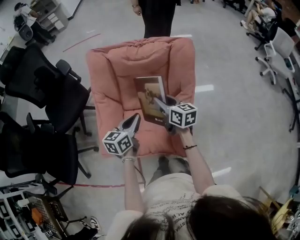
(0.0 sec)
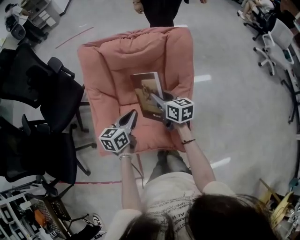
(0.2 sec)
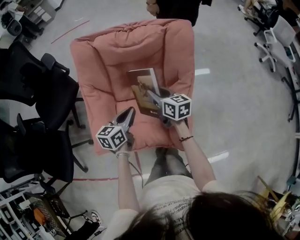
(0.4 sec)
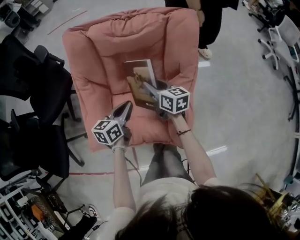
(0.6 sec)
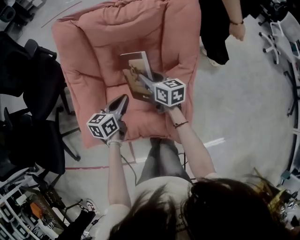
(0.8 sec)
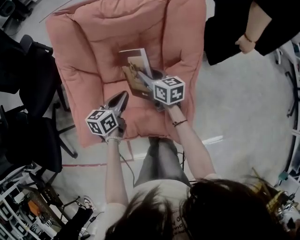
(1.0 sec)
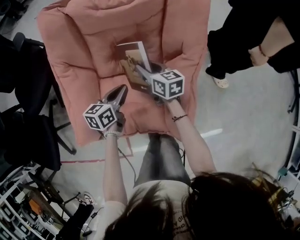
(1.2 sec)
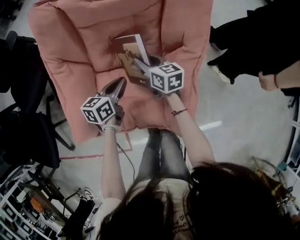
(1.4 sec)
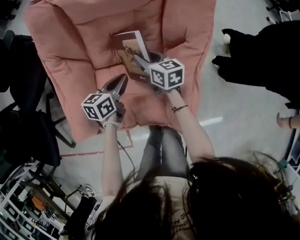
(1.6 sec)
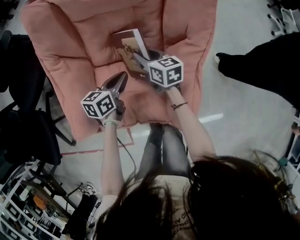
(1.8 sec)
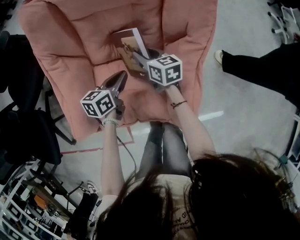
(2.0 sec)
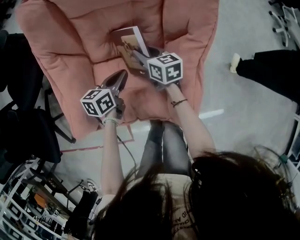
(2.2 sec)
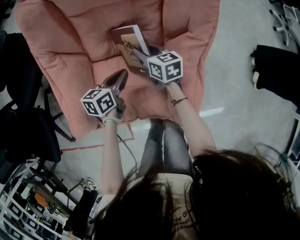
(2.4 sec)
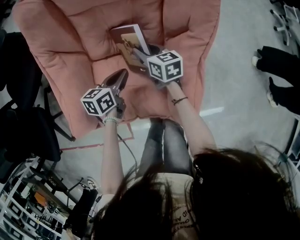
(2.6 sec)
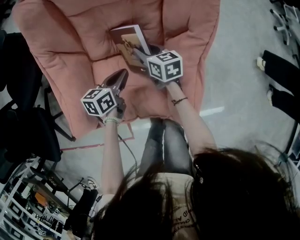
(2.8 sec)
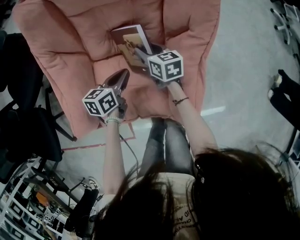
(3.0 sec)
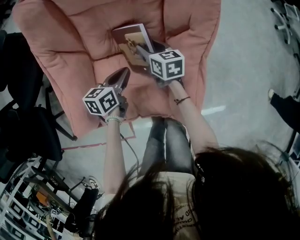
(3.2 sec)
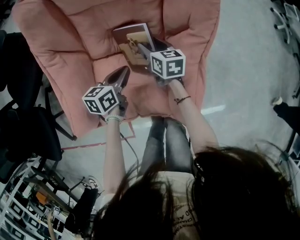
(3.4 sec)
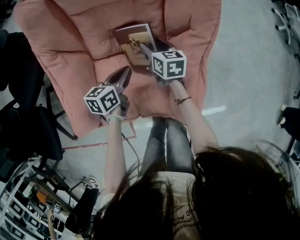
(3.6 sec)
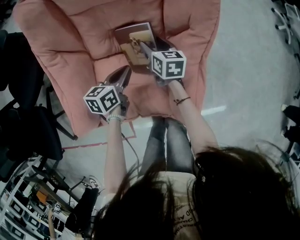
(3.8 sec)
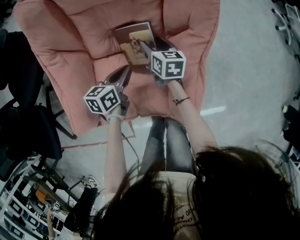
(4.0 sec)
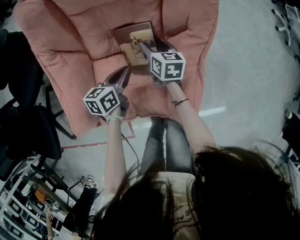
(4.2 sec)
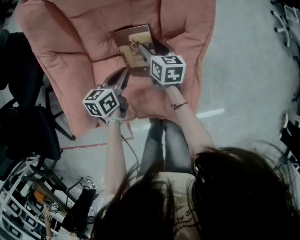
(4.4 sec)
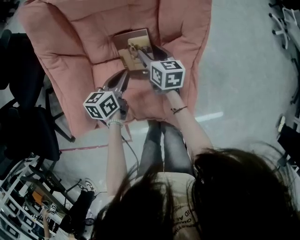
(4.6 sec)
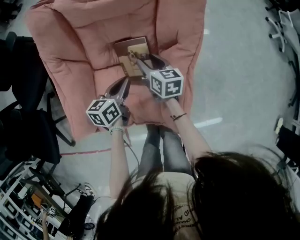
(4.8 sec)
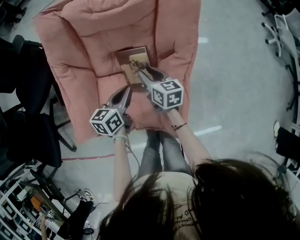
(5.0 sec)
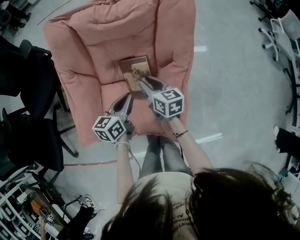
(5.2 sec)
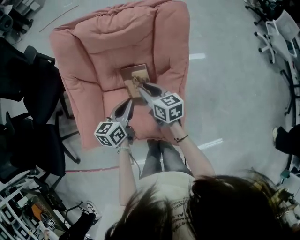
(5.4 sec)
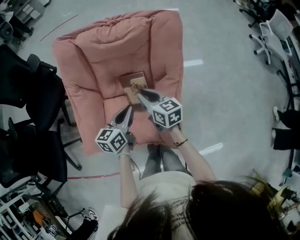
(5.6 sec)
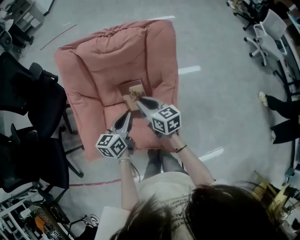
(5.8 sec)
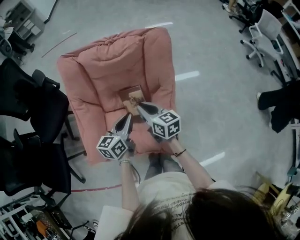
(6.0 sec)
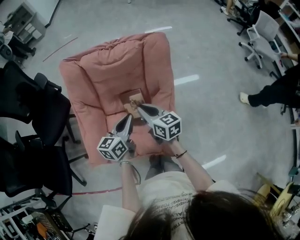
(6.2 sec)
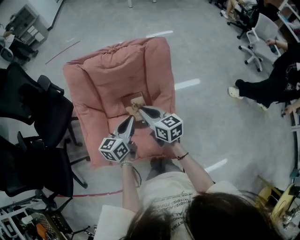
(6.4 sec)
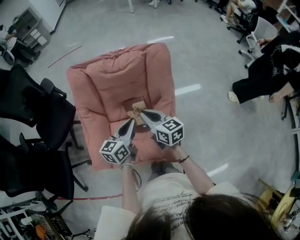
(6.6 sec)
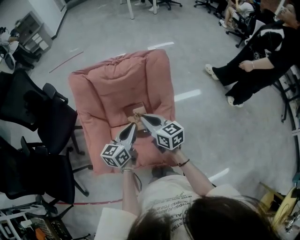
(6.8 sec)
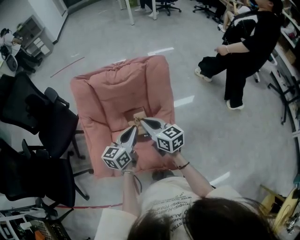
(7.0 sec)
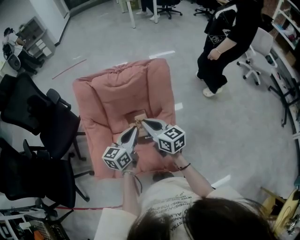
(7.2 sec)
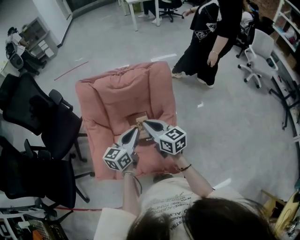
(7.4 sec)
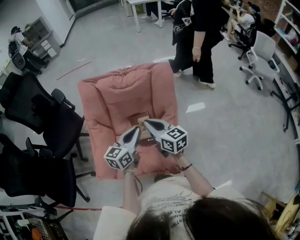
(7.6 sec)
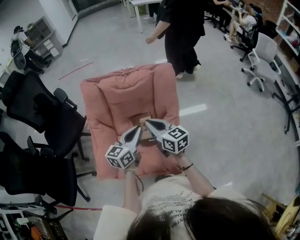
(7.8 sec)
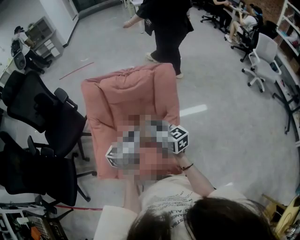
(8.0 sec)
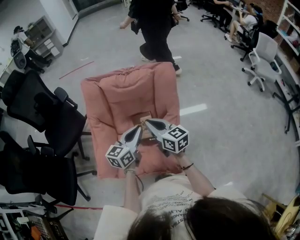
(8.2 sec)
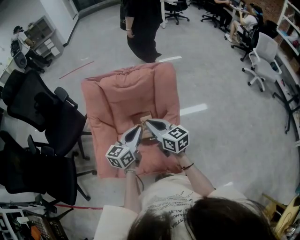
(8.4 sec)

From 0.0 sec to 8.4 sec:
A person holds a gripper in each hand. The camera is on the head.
From 0.0 sec to 1.4 sec: The grippers both shift downward by about 25 cm.
From 1.4 sec to 2.8 sec: There are only small adjustments of the grippers.
From 2.8 sec to 4.2 sec: The right gripper opens.
From 4.2 sec to 5.6 sec: Both grippers travel together upward, some 20 cm. The right gripper closes up.
From 5.6 sec to 7.0 sec: Both grippers move upward, approximately 15 cm.
From 7.0 sec to 8.4 sec: The grippers move only a little.

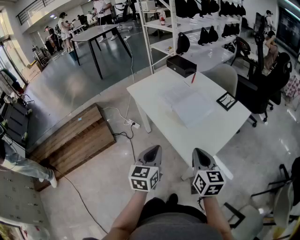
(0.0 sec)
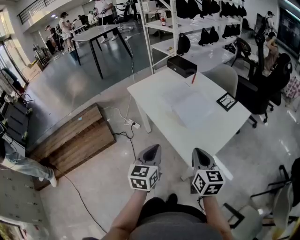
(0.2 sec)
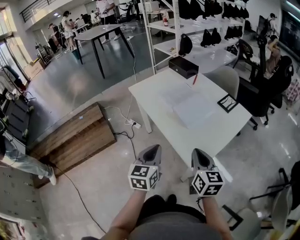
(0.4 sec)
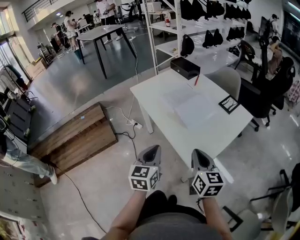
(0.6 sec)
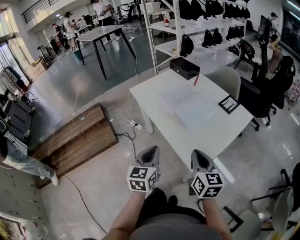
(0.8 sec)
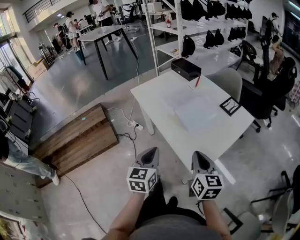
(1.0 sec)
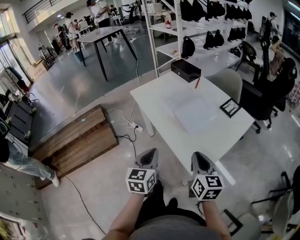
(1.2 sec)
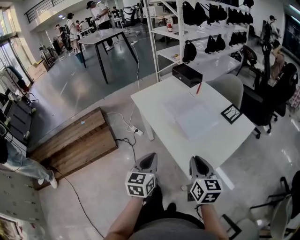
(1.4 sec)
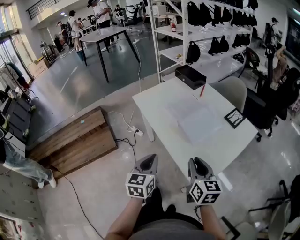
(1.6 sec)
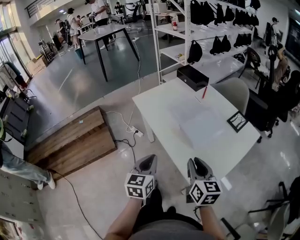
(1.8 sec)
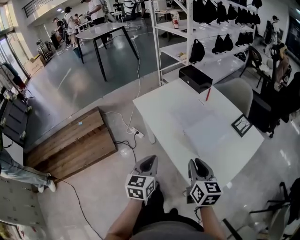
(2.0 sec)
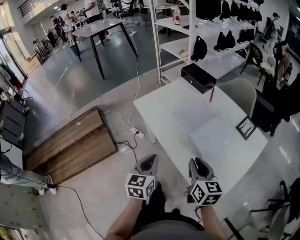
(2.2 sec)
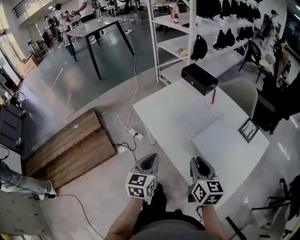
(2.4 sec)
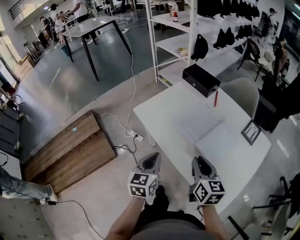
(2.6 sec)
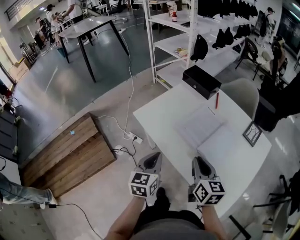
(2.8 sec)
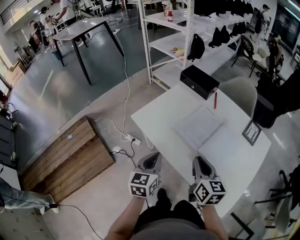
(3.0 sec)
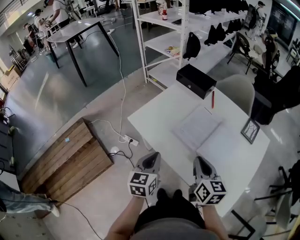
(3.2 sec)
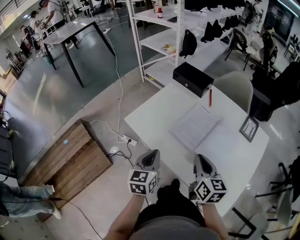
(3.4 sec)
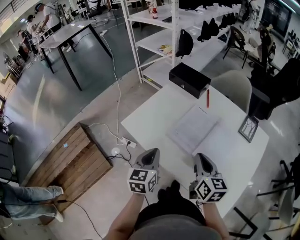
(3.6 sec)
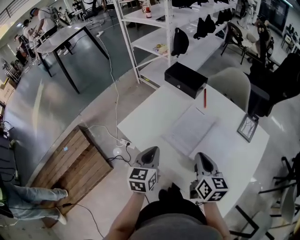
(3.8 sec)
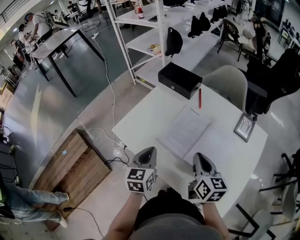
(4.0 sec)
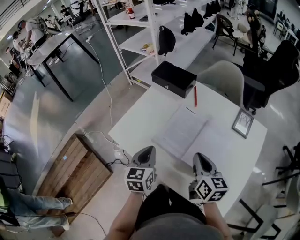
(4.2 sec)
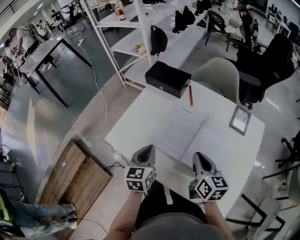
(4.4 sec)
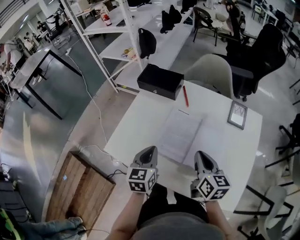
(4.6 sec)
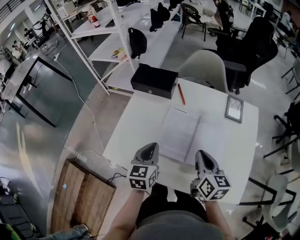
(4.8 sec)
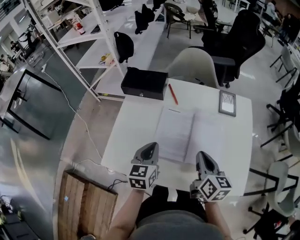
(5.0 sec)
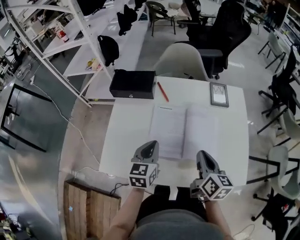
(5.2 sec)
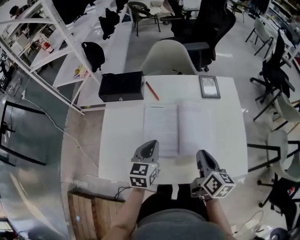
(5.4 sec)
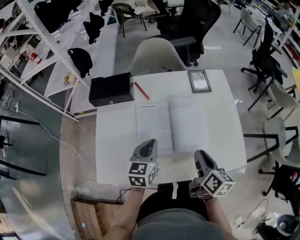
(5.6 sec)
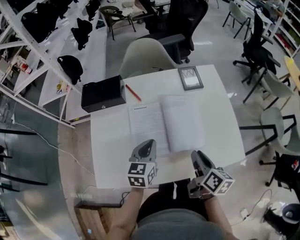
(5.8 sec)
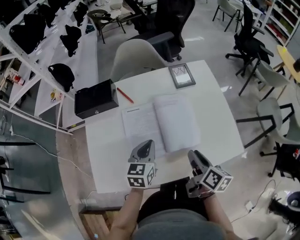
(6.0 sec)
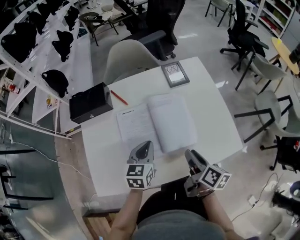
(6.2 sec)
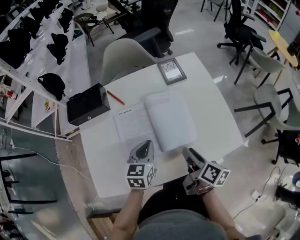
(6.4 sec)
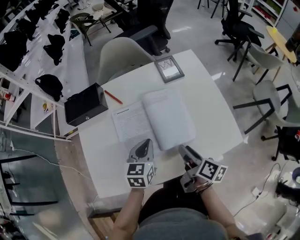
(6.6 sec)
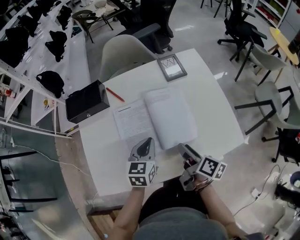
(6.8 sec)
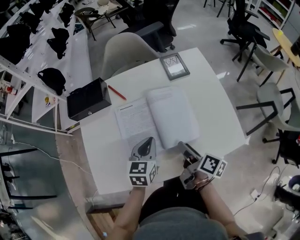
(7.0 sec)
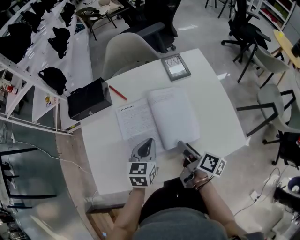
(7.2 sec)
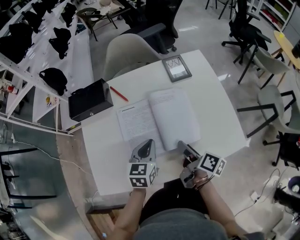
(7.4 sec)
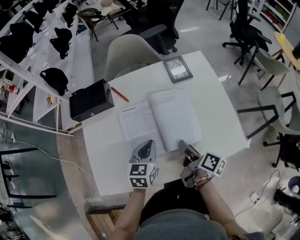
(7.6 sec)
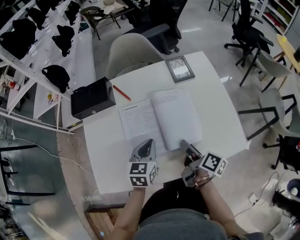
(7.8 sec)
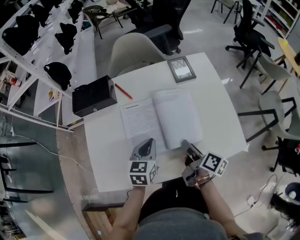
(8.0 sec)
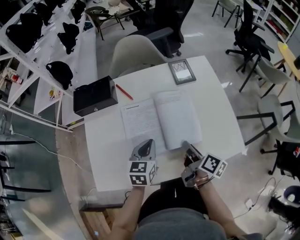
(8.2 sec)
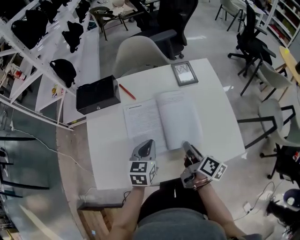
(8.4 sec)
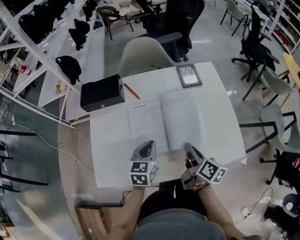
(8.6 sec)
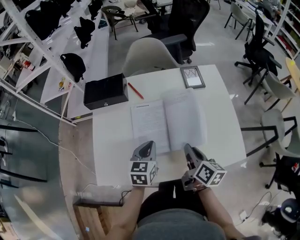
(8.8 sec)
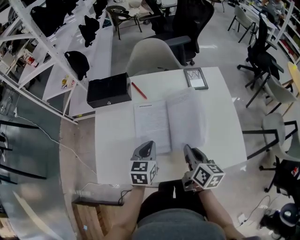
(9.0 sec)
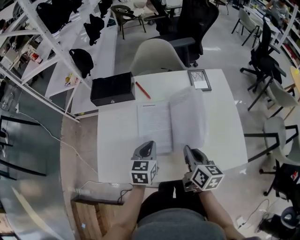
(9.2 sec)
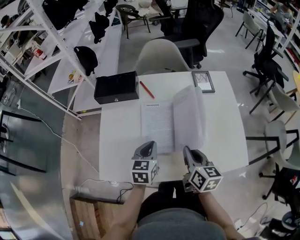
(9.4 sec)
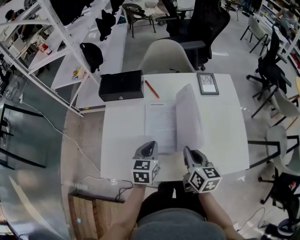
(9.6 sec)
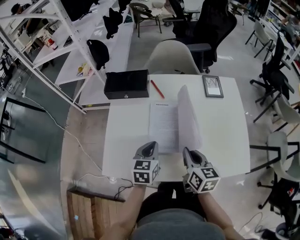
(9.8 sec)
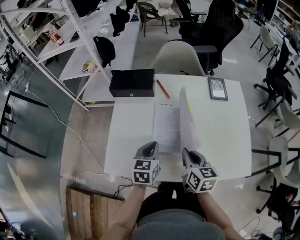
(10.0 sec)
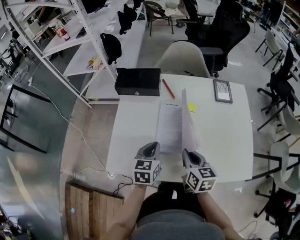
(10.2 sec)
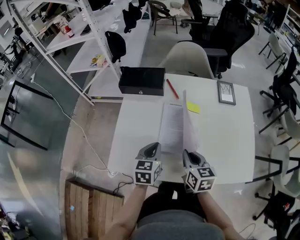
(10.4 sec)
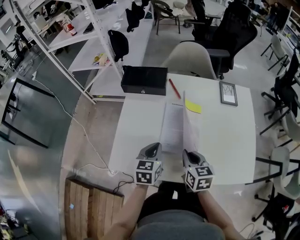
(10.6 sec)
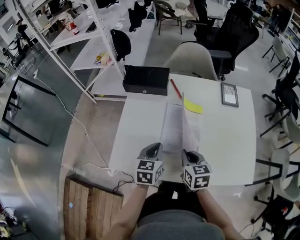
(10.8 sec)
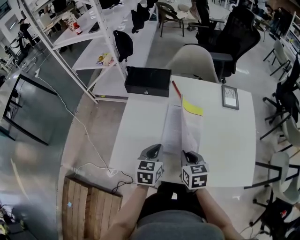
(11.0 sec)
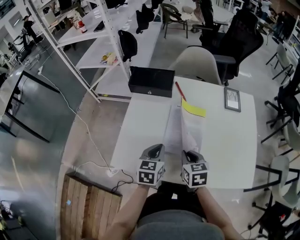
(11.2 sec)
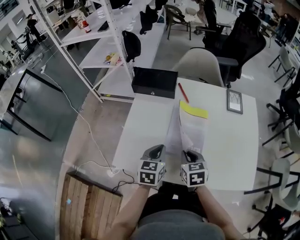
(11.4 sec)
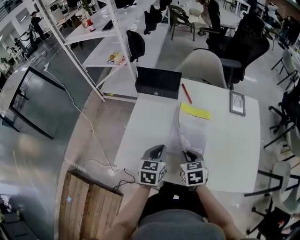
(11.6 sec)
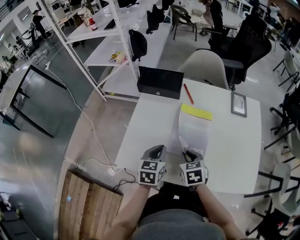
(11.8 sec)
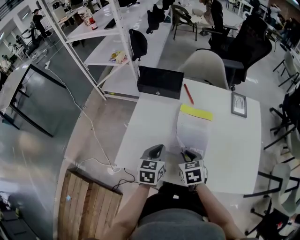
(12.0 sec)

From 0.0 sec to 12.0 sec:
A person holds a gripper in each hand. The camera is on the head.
From 0.0 sec to 1.6 sec: The right gripper goes roughly 5 cm forward. Meanwhile the left gripper shifts by some 5 cm.
From 1.6 sec to 3.0 sec: The grippers both shift forward and to the left by approximately 25 cm.
From 3.0 sec to 4.4 sec: The left gripper is displaced forward and to the right by approximately 15 cm. Meanwhile the right gripper goes approximately 10 cm to the right and forward.
From 4.4 sec to 6.0 sec: The right gripper changes place by roughly 10 cm, changes its angle by approximately 60 degrees, and opens, while the left gripper ends up approximately 10 cm from where it was, and changes its angle by about 50 degrees.
From 6.0 sec to 7.6 sec: The right gripper changes place by approximately 5 cm, rotates about 20 degrees, and opens its fingers.
From 7.6 sec to 9.0 sec: The right gripper goes roughly 5 cm upward, rotates roughly 40 degrees, and closes.
From 9.0 sec to 10.4 sec: The two grippers go some 10 cm to the left. The right gripper swivels approximately 30 degrees.
From 10.4 sec to 12.0 sec: The right gripper changes place by approximately 5 cm, and changes its angle by about 30 degrees.

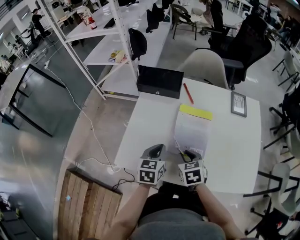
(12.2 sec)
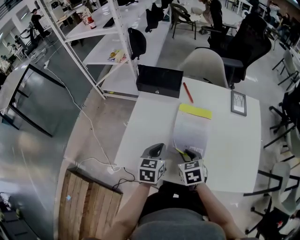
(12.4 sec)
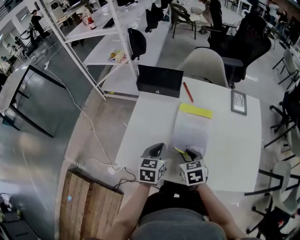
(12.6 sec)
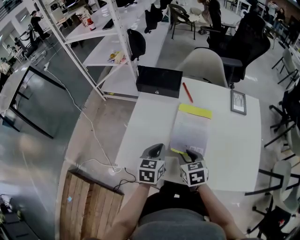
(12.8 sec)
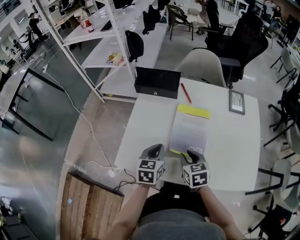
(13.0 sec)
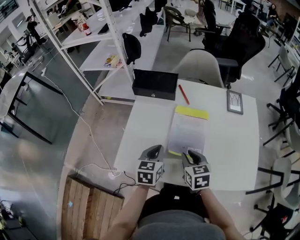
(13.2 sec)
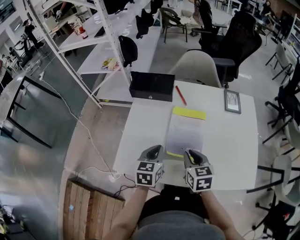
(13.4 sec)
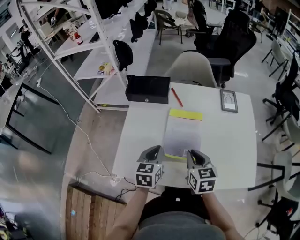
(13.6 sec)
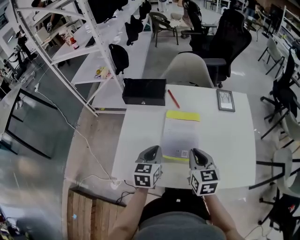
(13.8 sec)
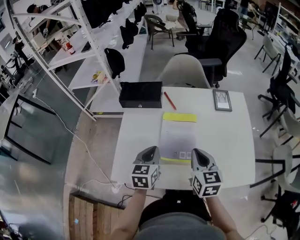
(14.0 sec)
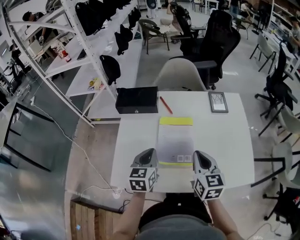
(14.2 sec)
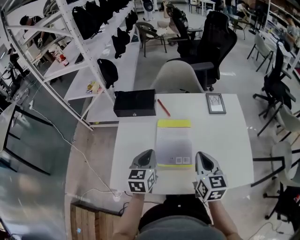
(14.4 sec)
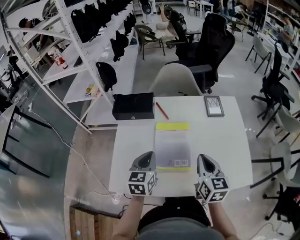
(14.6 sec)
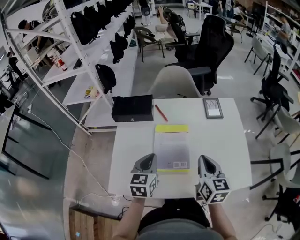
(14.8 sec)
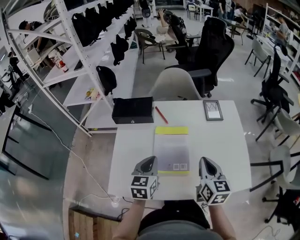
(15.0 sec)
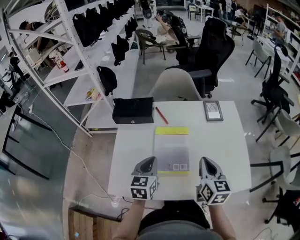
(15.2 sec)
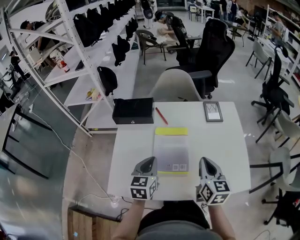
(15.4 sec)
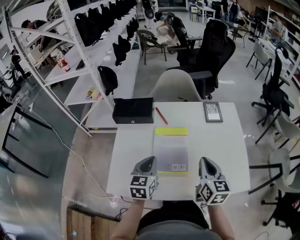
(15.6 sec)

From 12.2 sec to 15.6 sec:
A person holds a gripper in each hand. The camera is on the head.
From 12.2 sec to 13.8 sec: The right gripper shifts some 10 cm upward and to the right, and swivels roughly 30 degrees.
From 13.8 sec to 15.6 sec: The right gripper moves to the right, about 10 cm.
